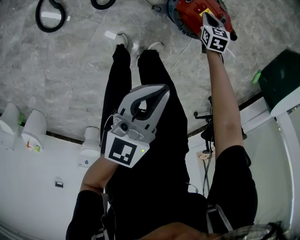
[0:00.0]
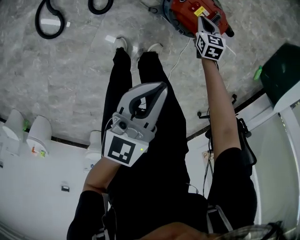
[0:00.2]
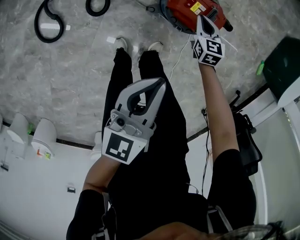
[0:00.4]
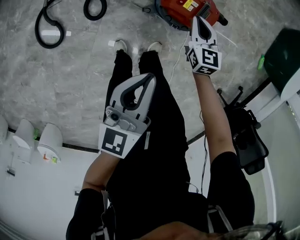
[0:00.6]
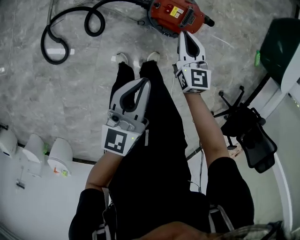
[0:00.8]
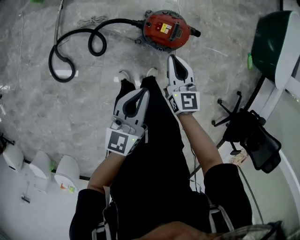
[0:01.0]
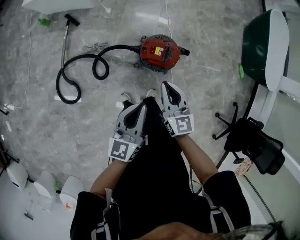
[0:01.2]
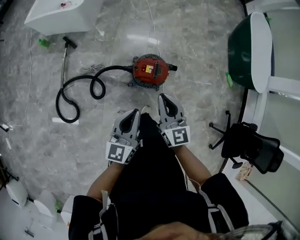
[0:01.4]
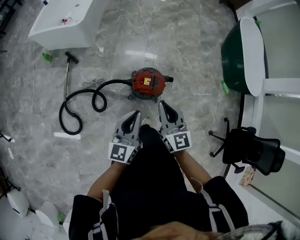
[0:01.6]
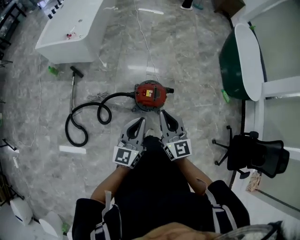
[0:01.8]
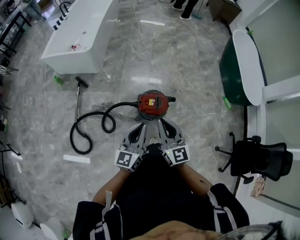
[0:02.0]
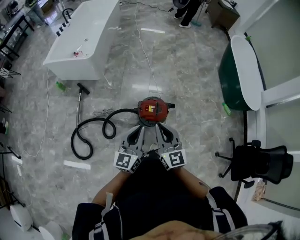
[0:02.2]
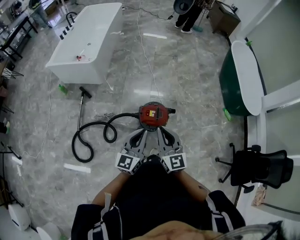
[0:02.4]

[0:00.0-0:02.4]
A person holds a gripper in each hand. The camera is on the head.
0:00.0 to 0:01.2: The left gripper moves upward, about 15 cm. Meanwhile the right gripper goes roughly 40 cm upward, and angles its fingers upward, by about 40 degrees.
0:01.2 to 0:02.4: The left gripper shifts approximately 15 cm upward; the right gripper heads upward, covering roughly 20 cm.

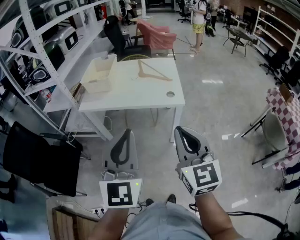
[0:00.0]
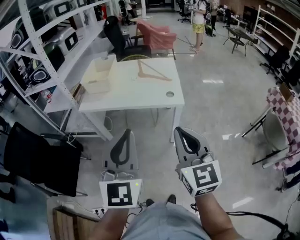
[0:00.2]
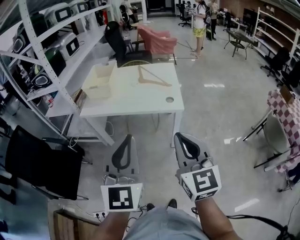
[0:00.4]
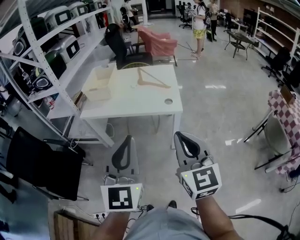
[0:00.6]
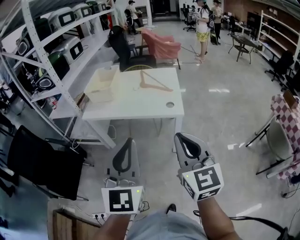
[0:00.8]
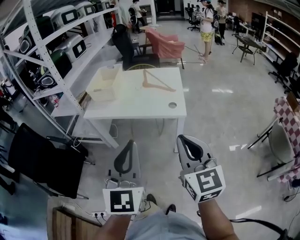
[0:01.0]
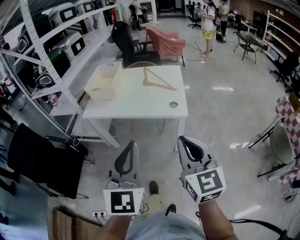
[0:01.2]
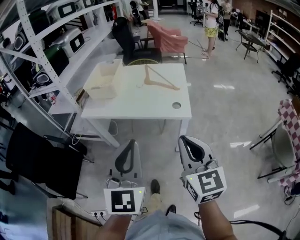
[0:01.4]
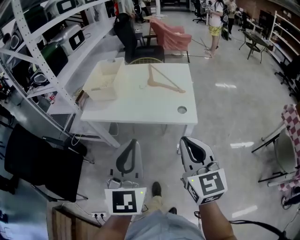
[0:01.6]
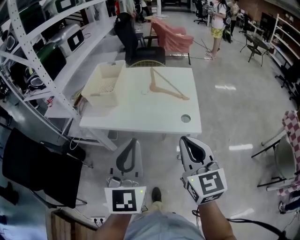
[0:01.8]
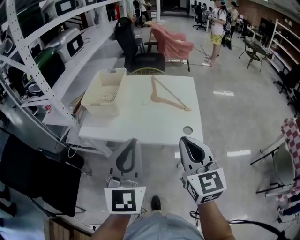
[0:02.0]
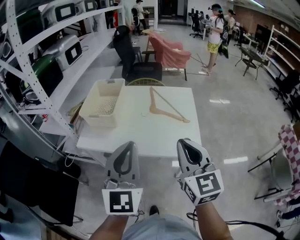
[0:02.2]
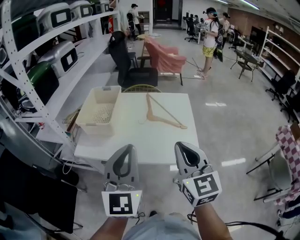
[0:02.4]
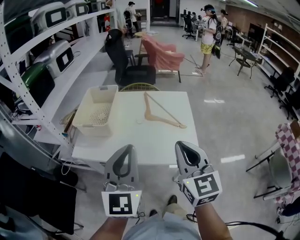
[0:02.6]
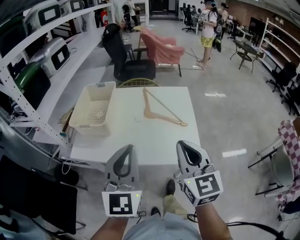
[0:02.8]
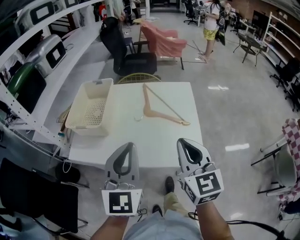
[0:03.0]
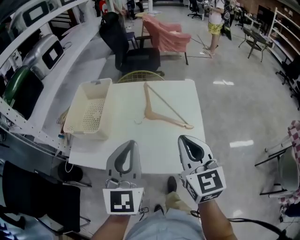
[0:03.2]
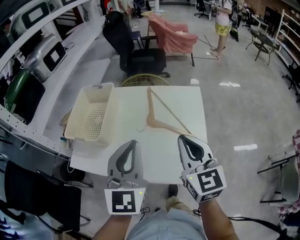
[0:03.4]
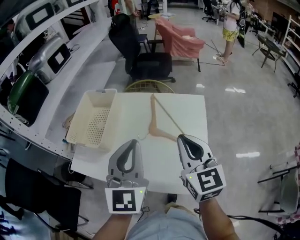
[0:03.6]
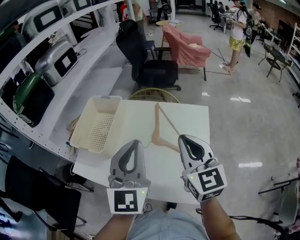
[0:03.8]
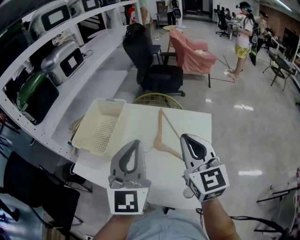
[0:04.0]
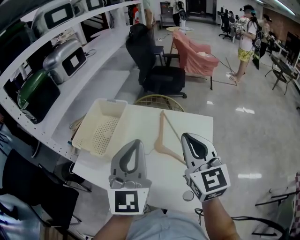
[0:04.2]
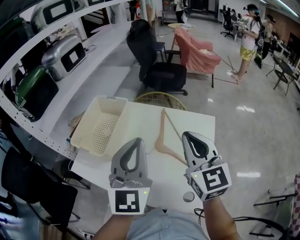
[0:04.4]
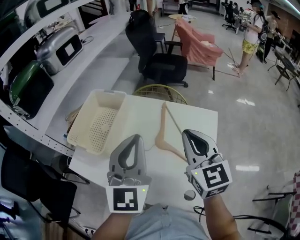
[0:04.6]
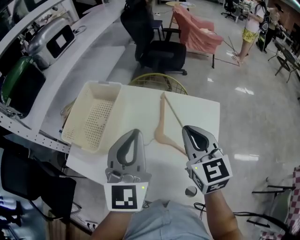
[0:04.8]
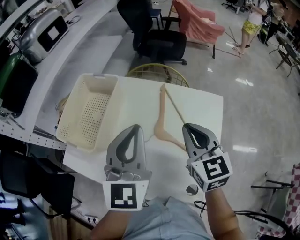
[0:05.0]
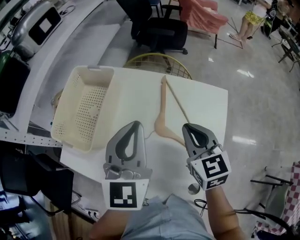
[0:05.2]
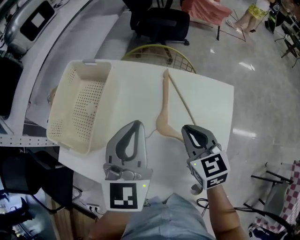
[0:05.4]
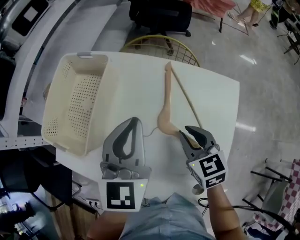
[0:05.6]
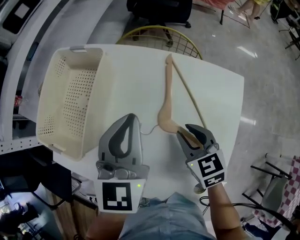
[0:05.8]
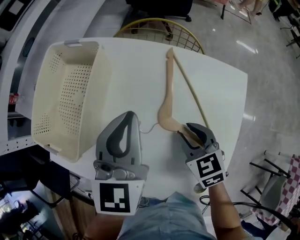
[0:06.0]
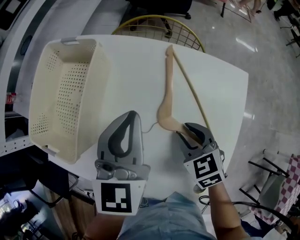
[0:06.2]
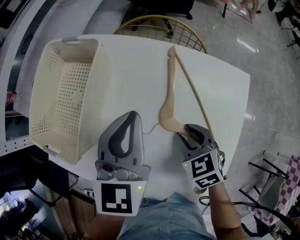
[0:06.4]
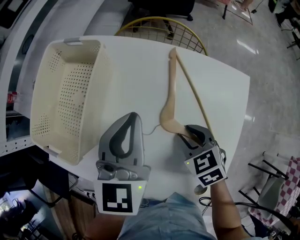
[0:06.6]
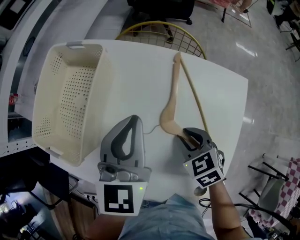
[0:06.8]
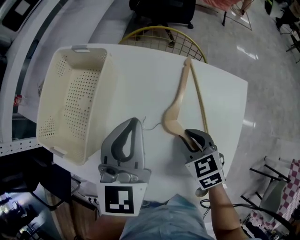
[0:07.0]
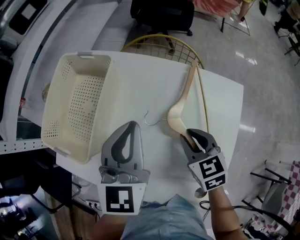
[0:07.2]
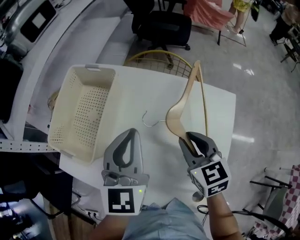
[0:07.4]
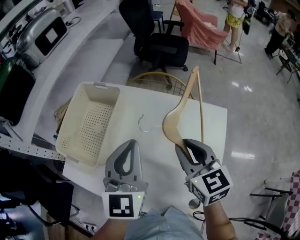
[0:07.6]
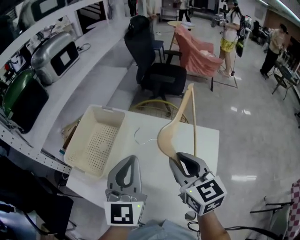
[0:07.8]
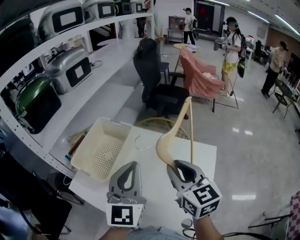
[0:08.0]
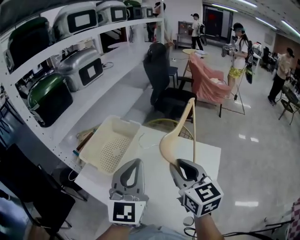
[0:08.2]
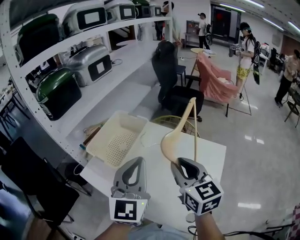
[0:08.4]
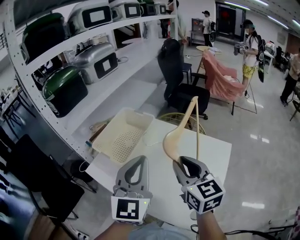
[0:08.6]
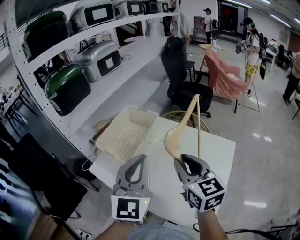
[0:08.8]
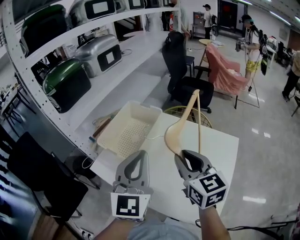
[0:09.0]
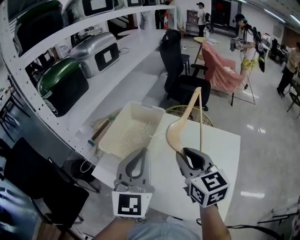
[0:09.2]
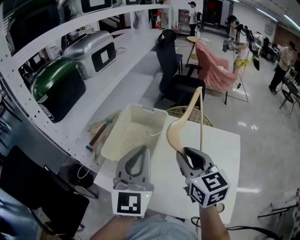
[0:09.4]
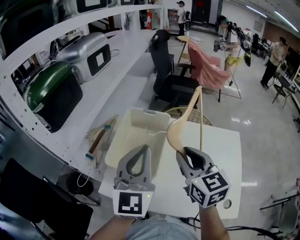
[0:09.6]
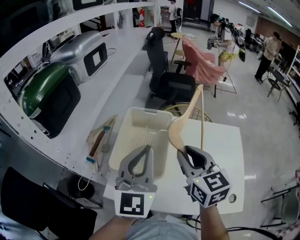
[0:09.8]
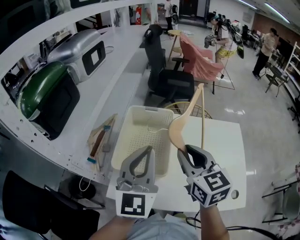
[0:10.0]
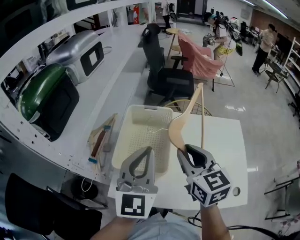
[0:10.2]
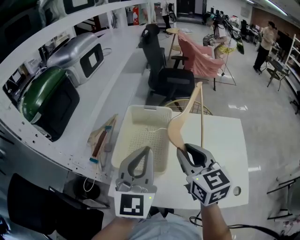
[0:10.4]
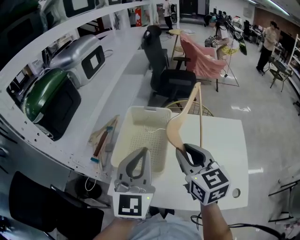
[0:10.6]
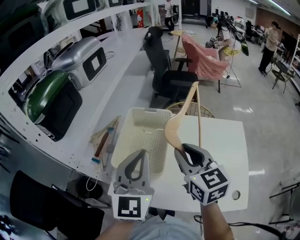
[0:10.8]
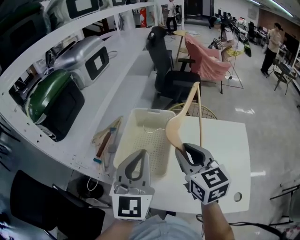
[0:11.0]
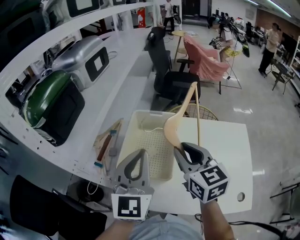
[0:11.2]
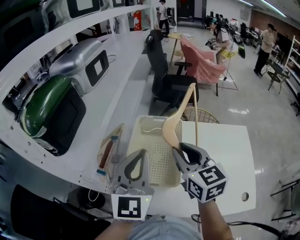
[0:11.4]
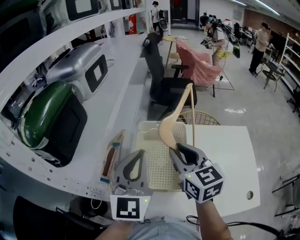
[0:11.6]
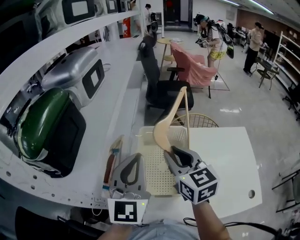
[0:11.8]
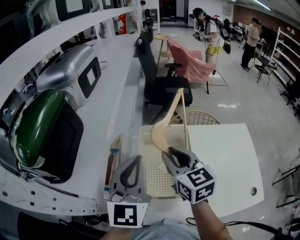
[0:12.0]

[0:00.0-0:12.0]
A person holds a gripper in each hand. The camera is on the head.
0:00.0 to 0:01.6: Both grippers travel together forward, some 10 cm.
0:01.6 to 0:03.0: The two grippers go some 25 cm forward.
0:03.0 to 0:04.4: The grippers both shift forward by roughly 20 cm.
0:04.4 to 0:06.0: The left gripper is displaced downward and forward by some 25 cm, and rotates approximately 20 degrees. The right gripper moves downward, about 30 cm, angles its fingers downward, by roughly 40 degrees, and opens.
0:06.0 to 0:07.6: The right gripper goes about 15 cm upward, and swivels some 20 degrees. Meanwhile the left gripper travels upward by about 10 cm.
0:07.6 to 0:09.0: The left gripper goes approximately 15 cm upward, backward and to the left, while the right gripper goes about 15 cm to the left, upward and backward.
0:09.0 to 0:10.4: The left gripper heads to the left and forward, covering about 15 cm, and swivels approximately 20 degrees, while the right gripper shifts roughly 15 cm to the left.
0:10.4 to 0:12.0: The two grippers go approximately 15 cm to the left and forward.

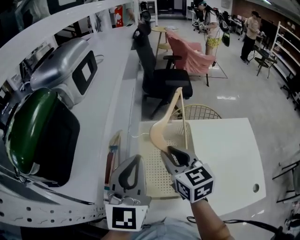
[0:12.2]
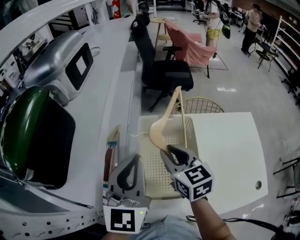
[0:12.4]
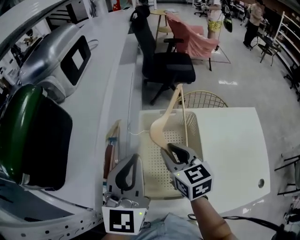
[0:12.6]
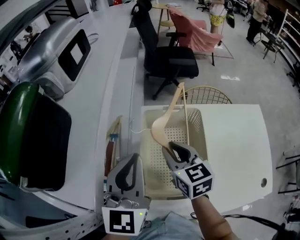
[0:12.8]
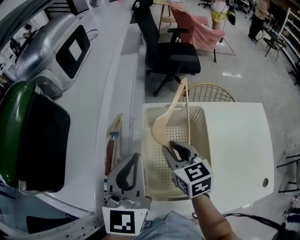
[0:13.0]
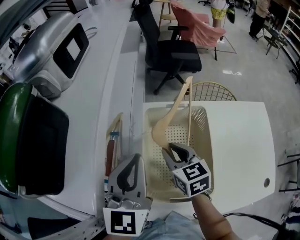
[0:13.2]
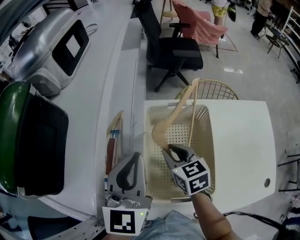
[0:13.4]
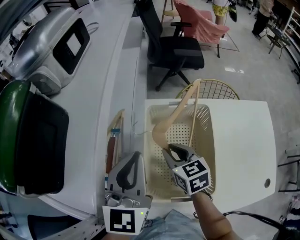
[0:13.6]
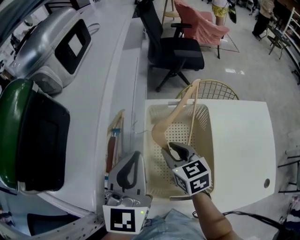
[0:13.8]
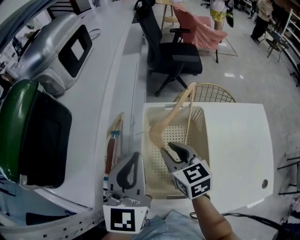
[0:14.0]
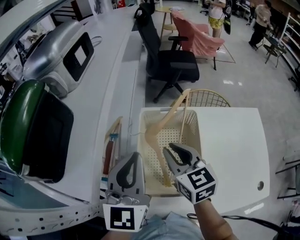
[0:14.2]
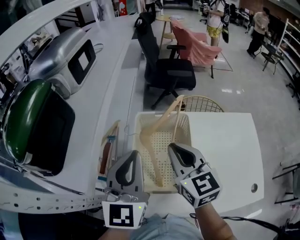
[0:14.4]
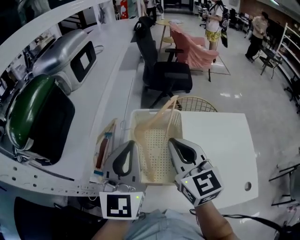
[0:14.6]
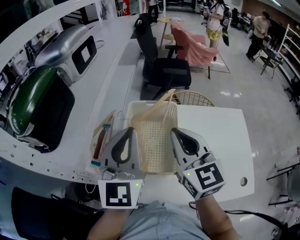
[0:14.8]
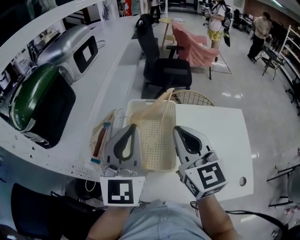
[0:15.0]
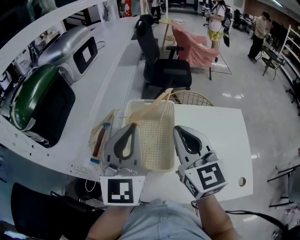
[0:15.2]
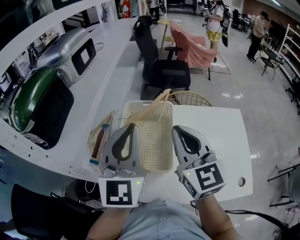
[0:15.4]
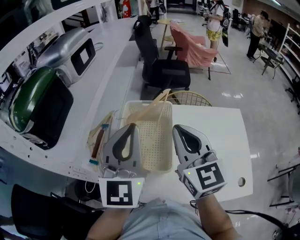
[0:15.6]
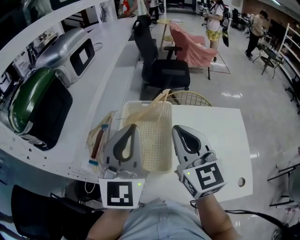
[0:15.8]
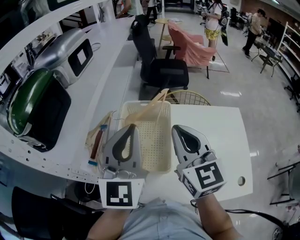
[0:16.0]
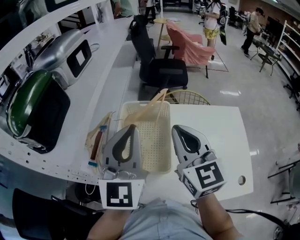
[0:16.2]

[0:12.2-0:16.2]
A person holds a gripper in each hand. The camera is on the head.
0:12.2 to 0:13.6: The left gripper travels downward by approximately 5 cm, while the right gripper is displaced downward by roughly 15 cm.
0:13.6 to 0:14.8: The right gripper travels upward, backward and to the right by some 30 cm, changes its angle by about 30 degrees, and closes its fingers. Meanwhile the left gripper shifts about 15 cm upward, backward and to the right.
0:14.8 to 0:16.2: There are only small adjustments of the grippers.

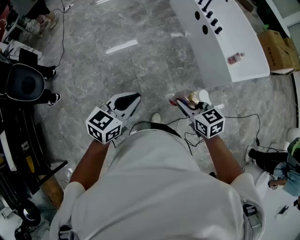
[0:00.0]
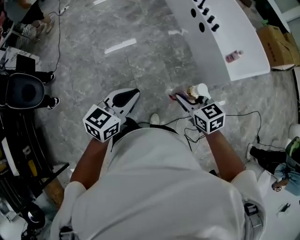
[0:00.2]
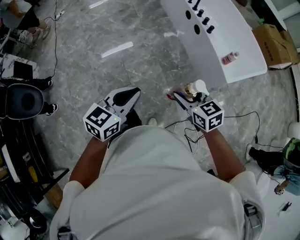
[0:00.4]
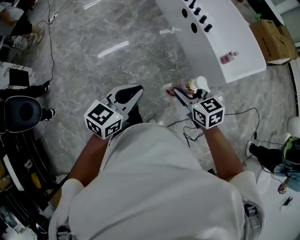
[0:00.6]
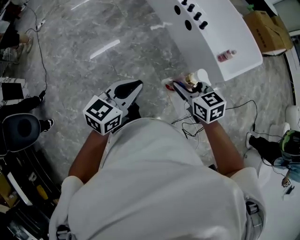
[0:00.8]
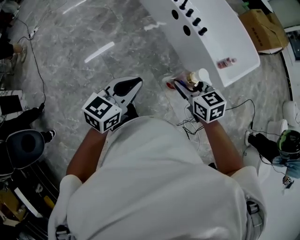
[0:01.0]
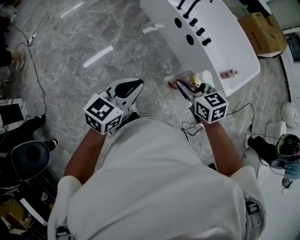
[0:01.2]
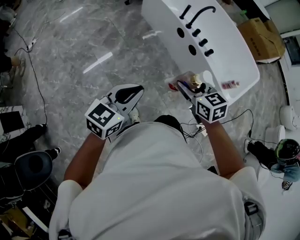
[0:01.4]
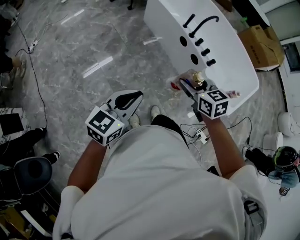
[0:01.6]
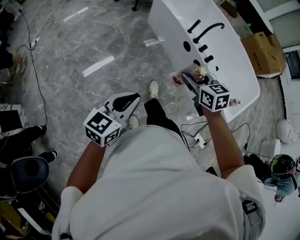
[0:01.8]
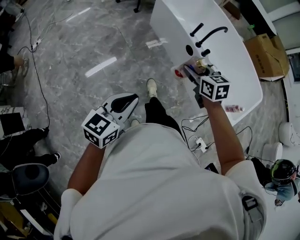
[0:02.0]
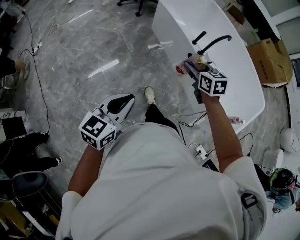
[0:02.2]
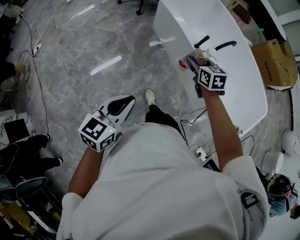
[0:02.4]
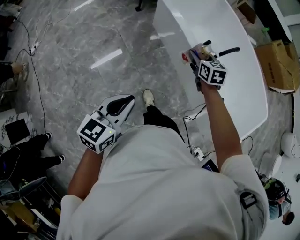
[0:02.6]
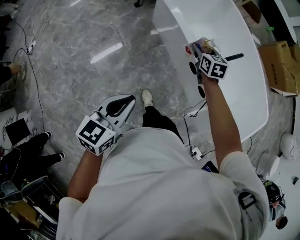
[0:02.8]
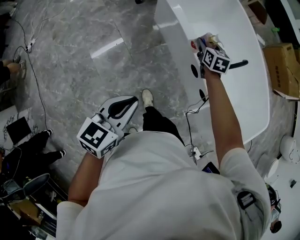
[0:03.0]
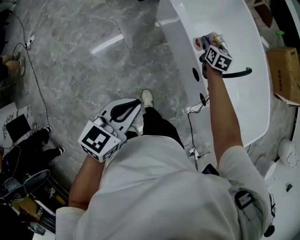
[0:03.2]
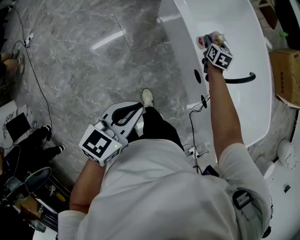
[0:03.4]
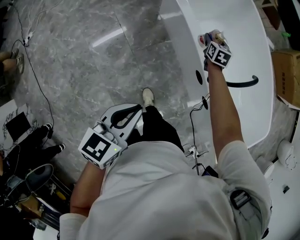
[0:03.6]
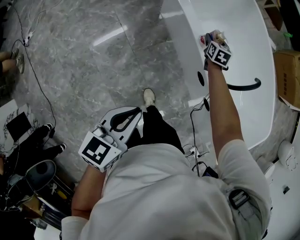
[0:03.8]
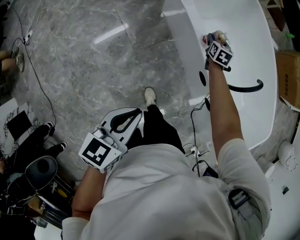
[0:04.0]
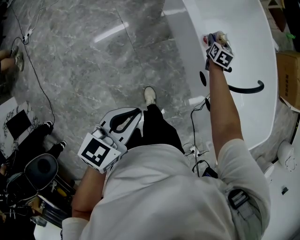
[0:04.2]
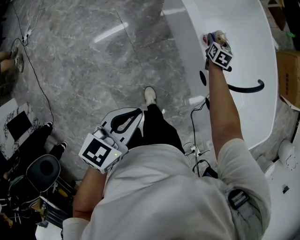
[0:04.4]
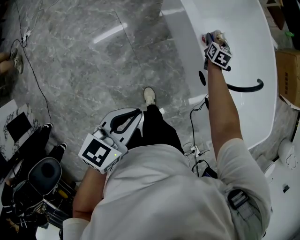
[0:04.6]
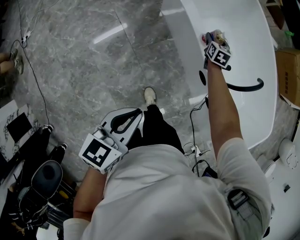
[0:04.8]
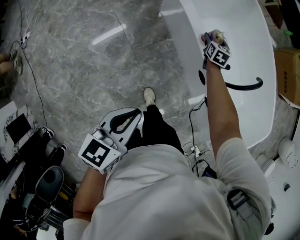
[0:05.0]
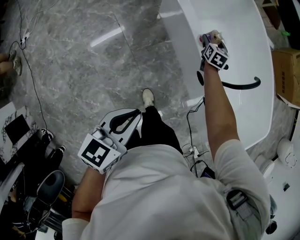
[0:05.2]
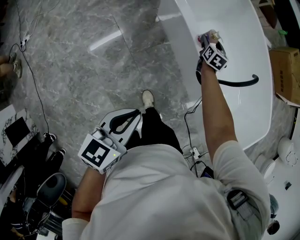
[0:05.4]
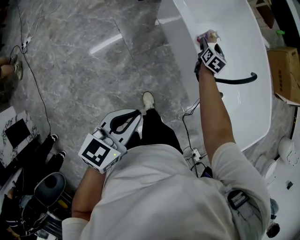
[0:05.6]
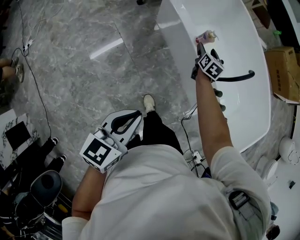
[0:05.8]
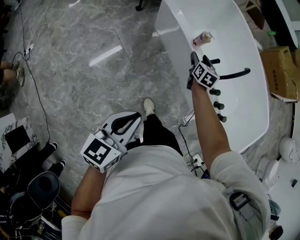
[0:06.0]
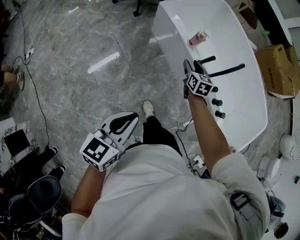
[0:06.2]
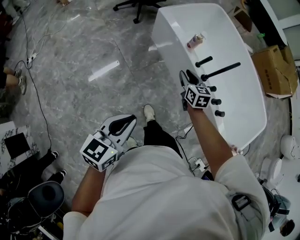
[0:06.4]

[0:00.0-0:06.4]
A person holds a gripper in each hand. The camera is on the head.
0:00.0 to 0:01.6: The pair of grippers is taken forward, about 50 cm.
0:01.6 to 0:03.2: Both grippers are carried forward, about 60 cm. The right gripper swivels some 20 degrees.
0:03.2 to 0:04.8: The right gripper goes about 15 cm downward and forward; the left gripper moves some 5 cm.
0:04.8 to 0:06.4: The right gripper is displaced backward and upward by some 35 cm. Meanwhile the left gripper goes about 15 cm backward.
